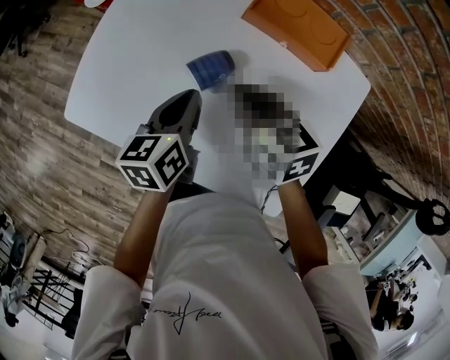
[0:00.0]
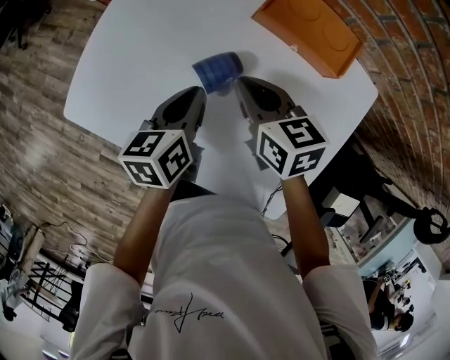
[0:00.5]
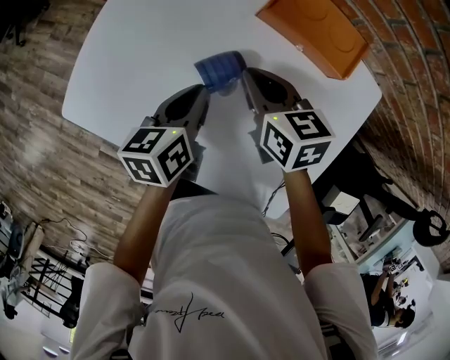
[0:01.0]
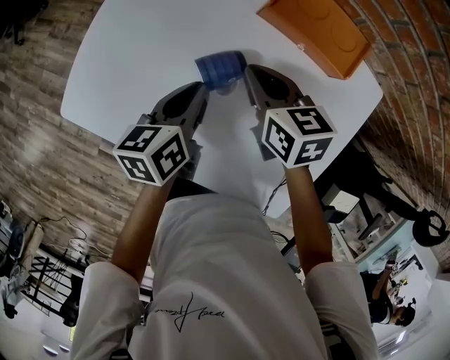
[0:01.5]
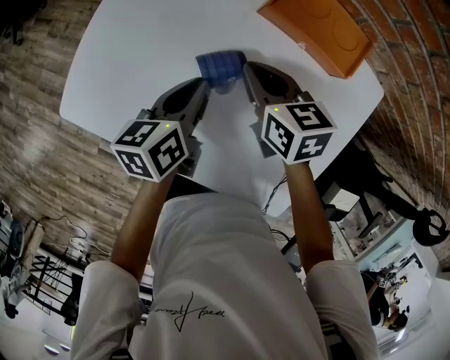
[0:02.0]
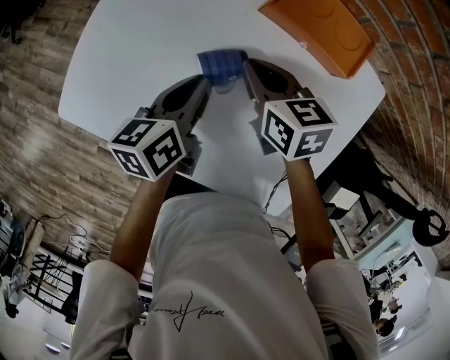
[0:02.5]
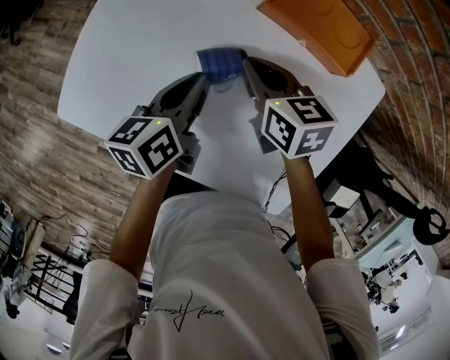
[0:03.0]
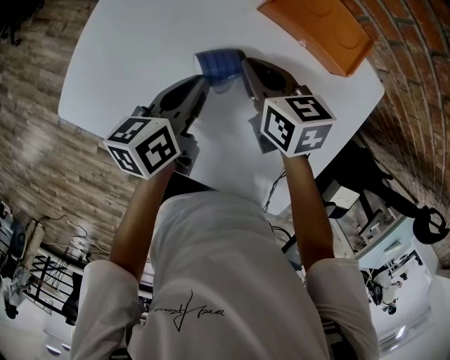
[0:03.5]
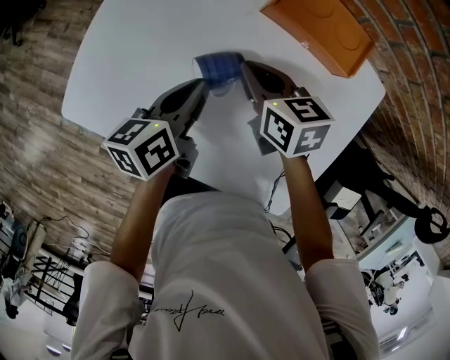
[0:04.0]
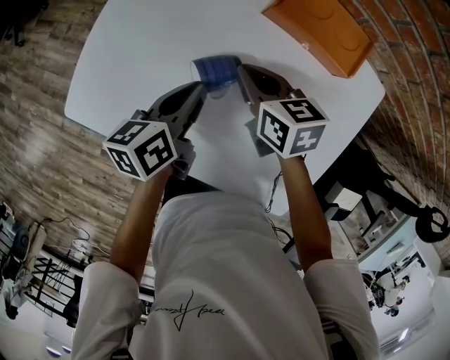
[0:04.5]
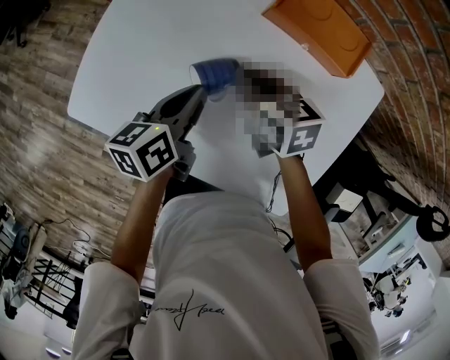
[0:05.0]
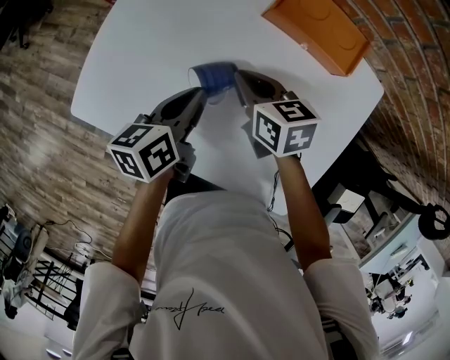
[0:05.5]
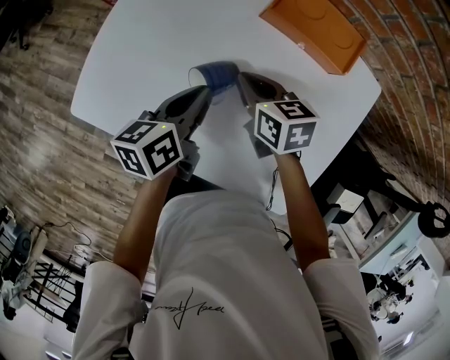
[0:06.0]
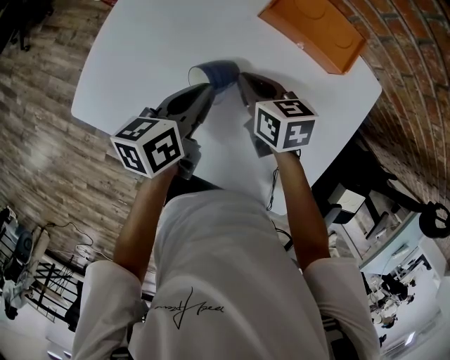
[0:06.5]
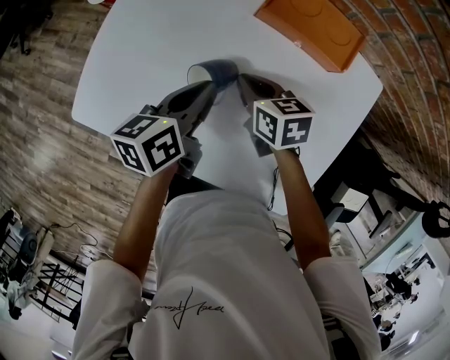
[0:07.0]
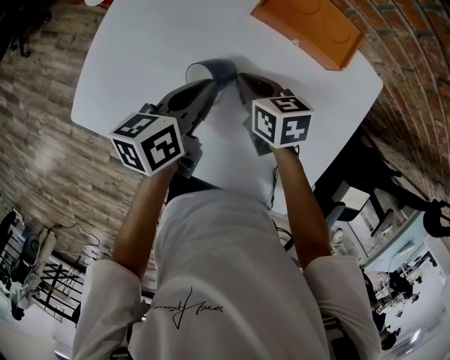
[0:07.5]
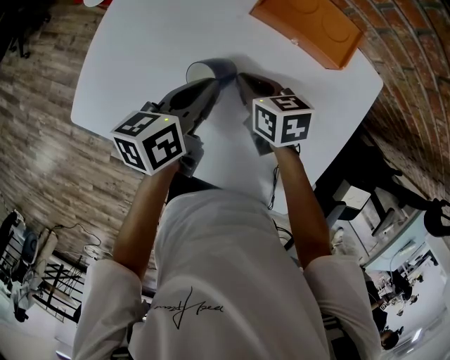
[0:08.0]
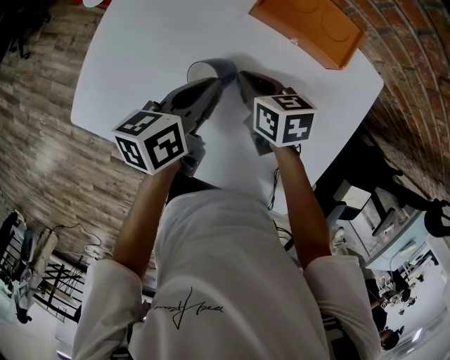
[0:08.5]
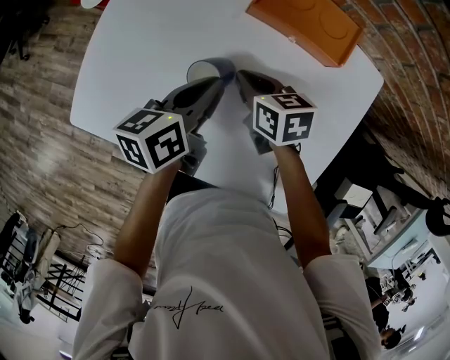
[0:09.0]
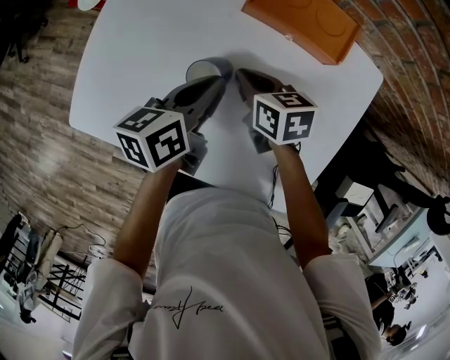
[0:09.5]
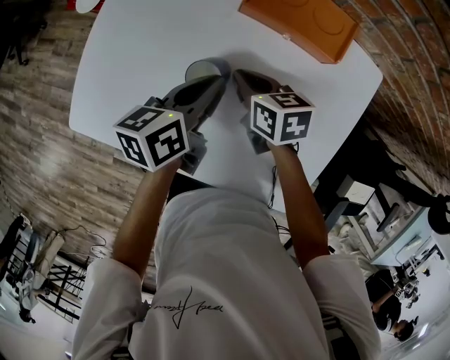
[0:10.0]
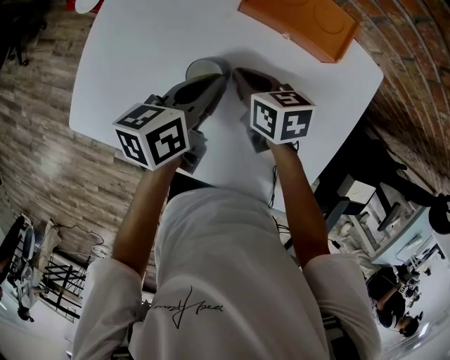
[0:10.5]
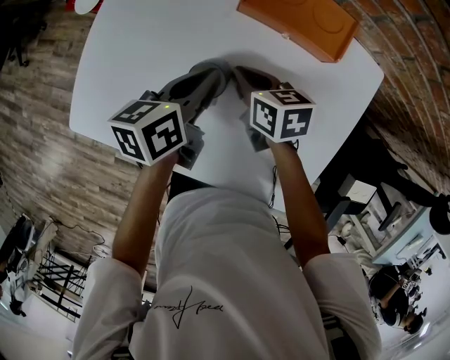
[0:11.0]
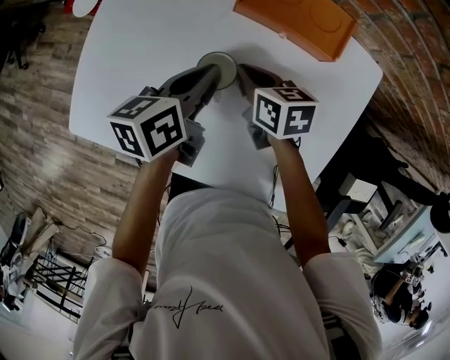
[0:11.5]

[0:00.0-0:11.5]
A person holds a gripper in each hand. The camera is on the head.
0:00.0 to 0:02.0: The right gripper changes place by about 5 cm.
0:02.0 to 0:09.5: The grippers stay close to where they were, moving slightly.
0:09.5 to 0:11.5: There are only small adjustments of the grippers.

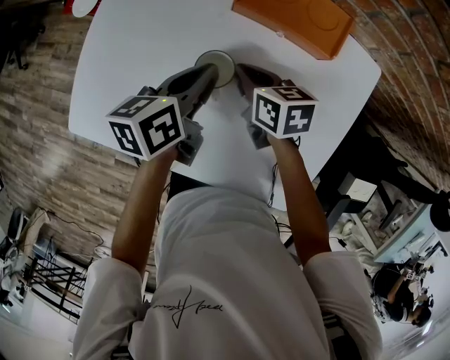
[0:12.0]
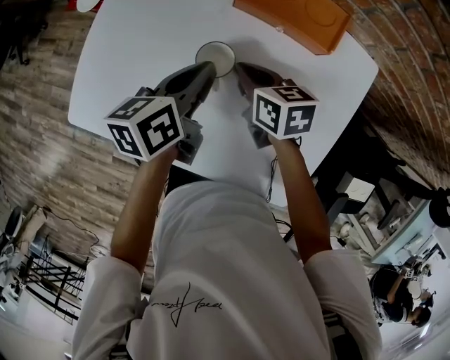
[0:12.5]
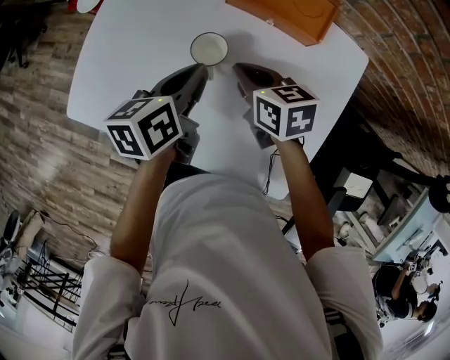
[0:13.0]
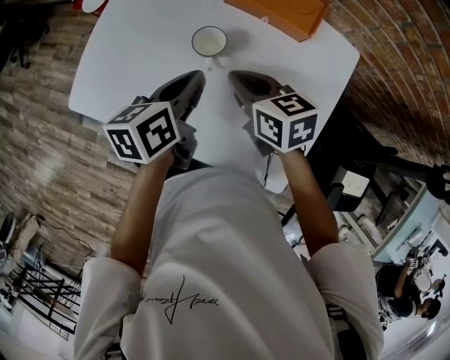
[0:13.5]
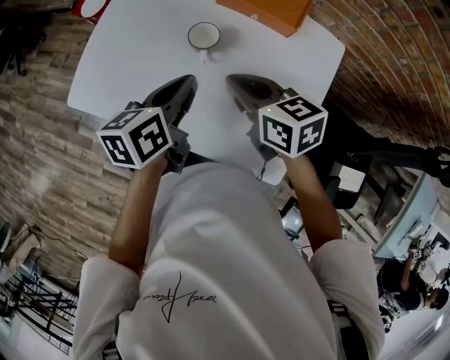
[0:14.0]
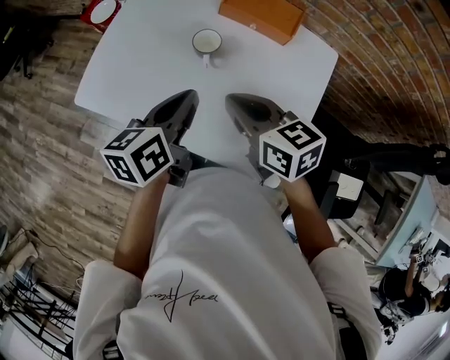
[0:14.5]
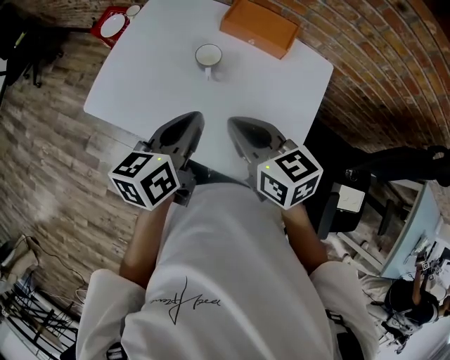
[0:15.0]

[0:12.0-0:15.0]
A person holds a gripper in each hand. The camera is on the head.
0:12.0 to 0:13.5: The right gripper travels upward and backward by roughly 15 cm. Meanwhile the left gripper travels backward by about 10 cm.
0:13.5 to 0:15.0: Both grippers travel together backward and upward, roughly 15 cm.

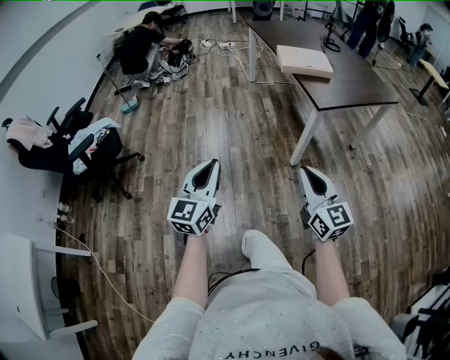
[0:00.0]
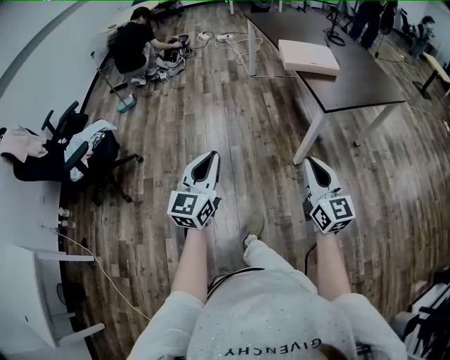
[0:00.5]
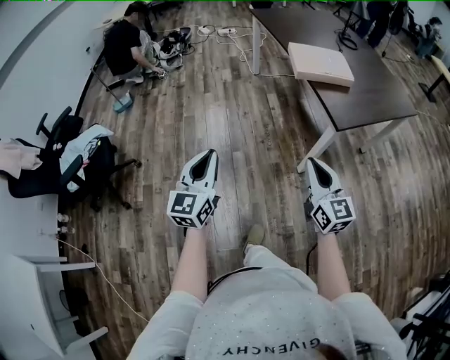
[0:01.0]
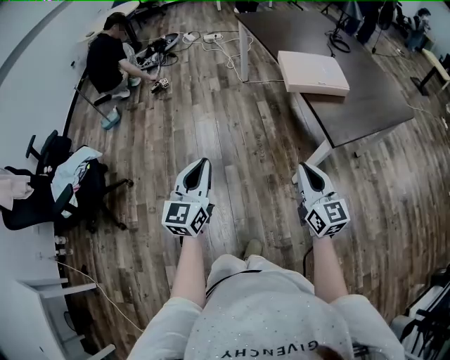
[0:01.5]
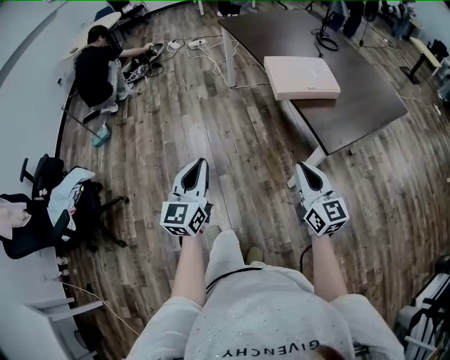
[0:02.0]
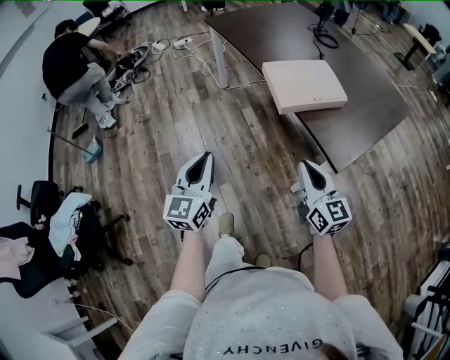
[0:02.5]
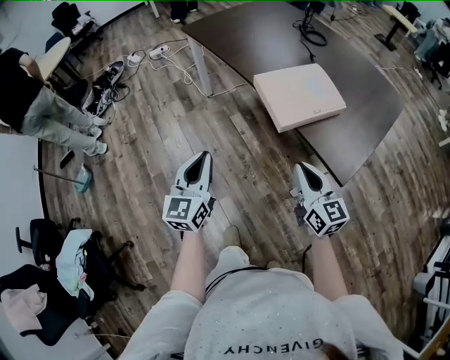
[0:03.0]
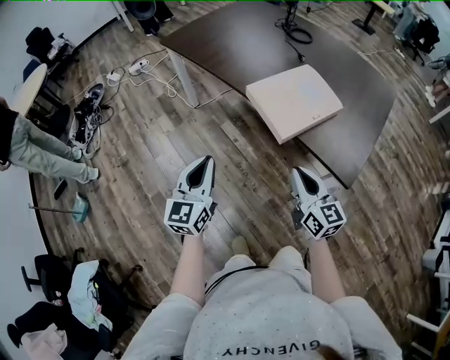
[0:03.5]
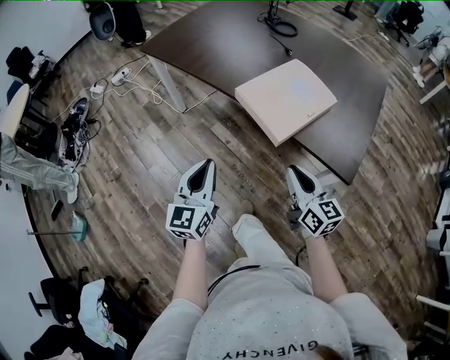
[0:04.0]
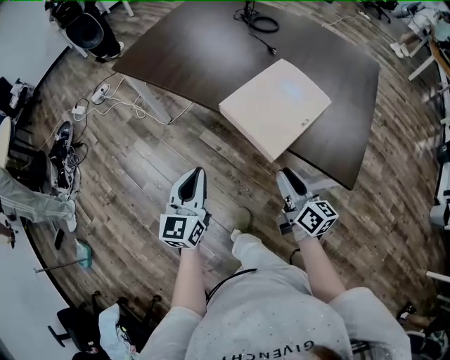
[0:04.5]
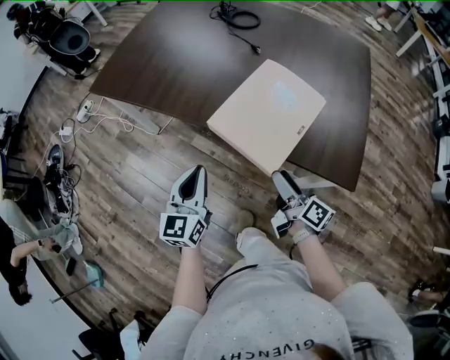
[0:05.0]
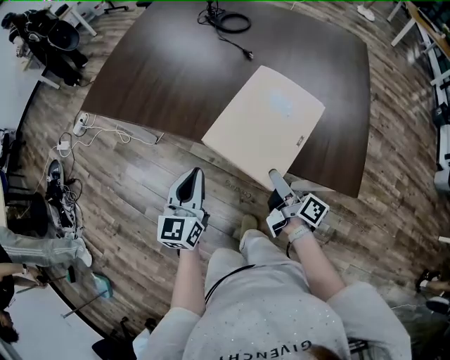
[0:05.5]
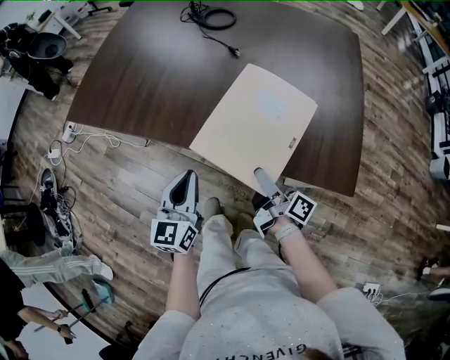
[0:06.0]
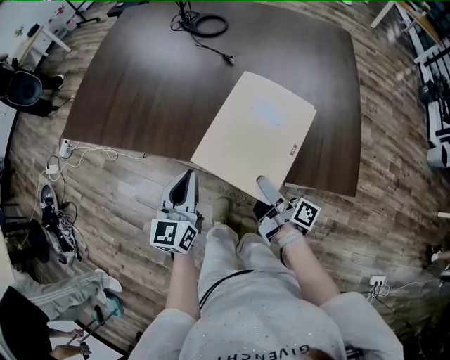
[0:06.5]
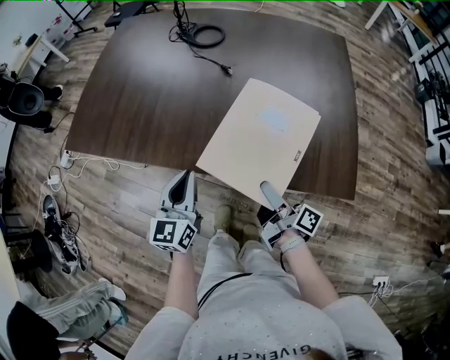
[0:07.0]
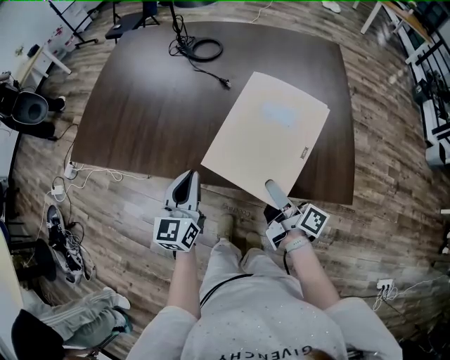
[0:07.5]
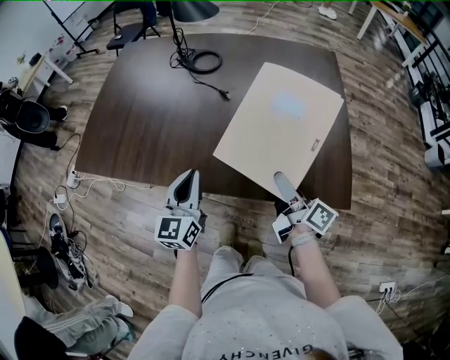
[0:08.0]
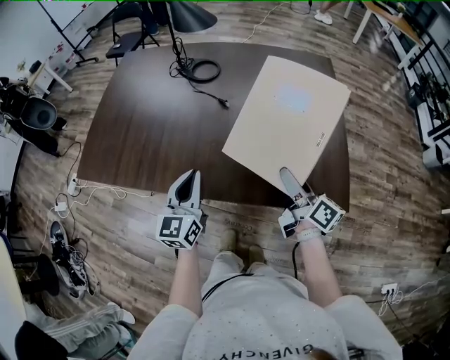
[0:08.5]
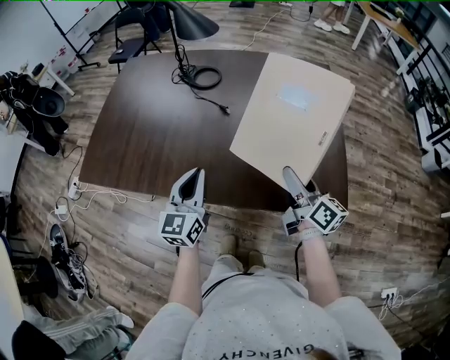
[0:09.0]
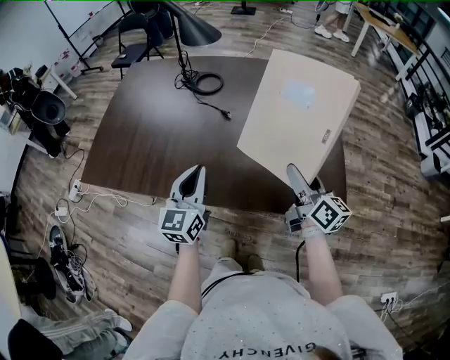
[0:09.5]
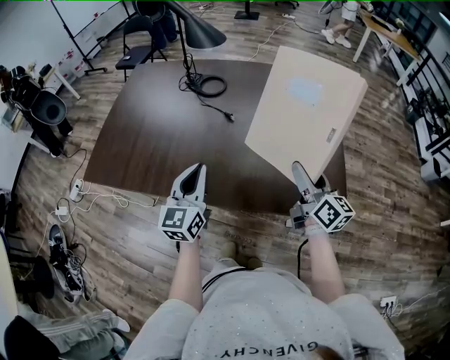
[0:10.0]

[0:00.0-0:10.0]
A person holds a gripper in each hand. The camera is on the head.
0:00.0 to 0:02.0: The two grippers travel together, forward, roughly 40 cm.
0:02.0 to 0:04.0: The right gripper ends up some 35 cm from where it was, and turns by roughly 30 degrees. Meanwhile the left gripper ends up some 40 cm from where it was, and swivels about 30 degrees.
0:04.0 to 0:06.0: The left gripper travels forward by about 25 cm. Meanwhile the right gripper goes approximately 25 cm forward and downward, rotates around the line of its fingers by some 60 degrees, clockwise from behind, and opens up.
0:06.0 to 0:08.0: The left gripper is displaced forward and upward by approximately 15 cm. Meanwhile the right gripper moves upward, forward and to the right, roughly 15 cm, and rotates some 20 degrees.
0:08.0 to 0:10.0: The left gripper goes some 5 cm upward, while the right gripper travels upward by some 10 cm, and rotates roughly 30 degrees.

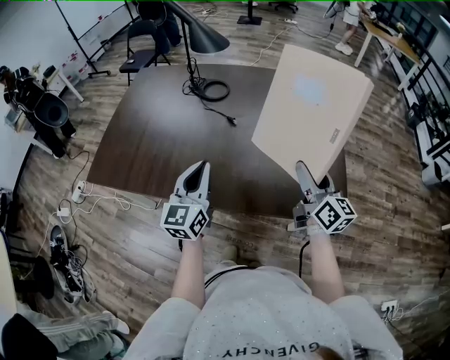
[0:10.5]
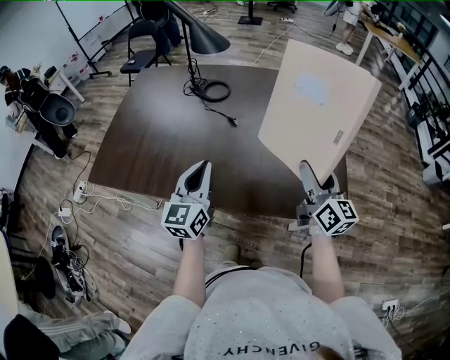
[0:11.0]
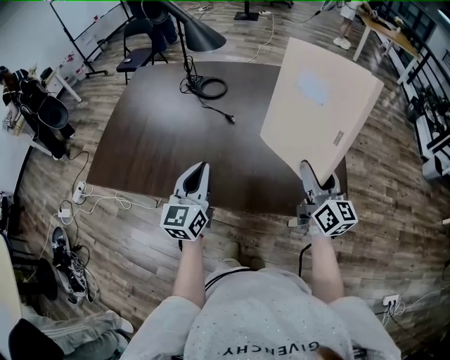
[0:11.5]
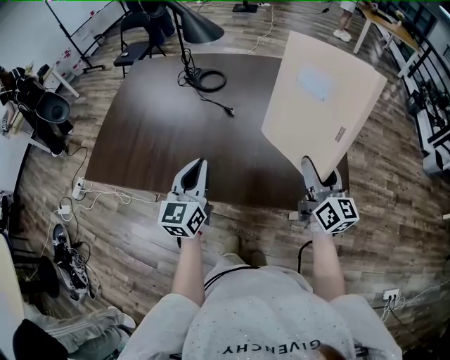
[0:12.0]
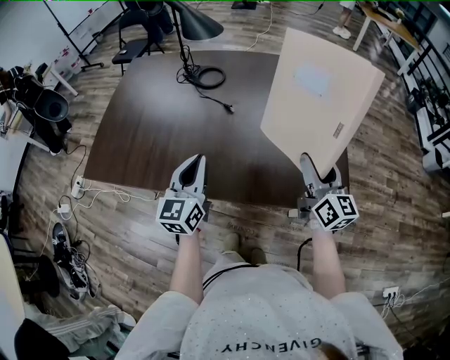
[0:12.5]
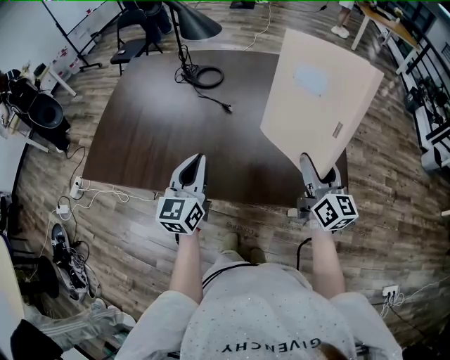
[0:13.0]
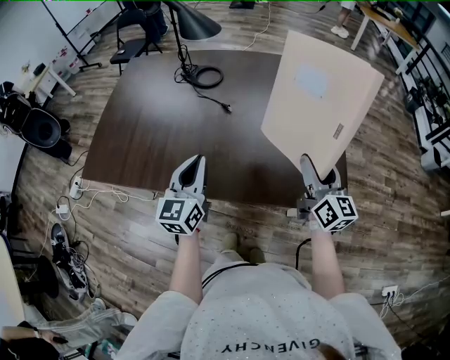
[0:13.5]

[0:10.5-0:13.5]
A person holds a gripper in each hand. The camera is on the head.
0:10.5 to 0:12.0: There are only small adjustments of the grippers.
0:12.0 to 0:13.5: Both grippers stay about where they are.
